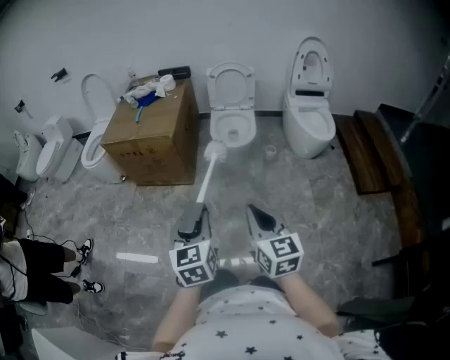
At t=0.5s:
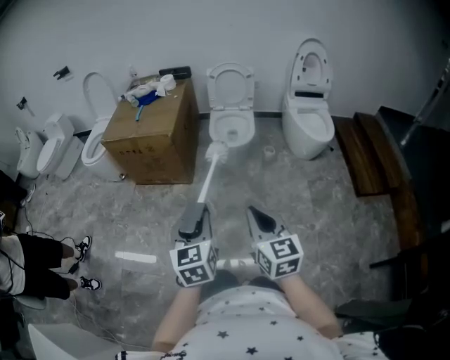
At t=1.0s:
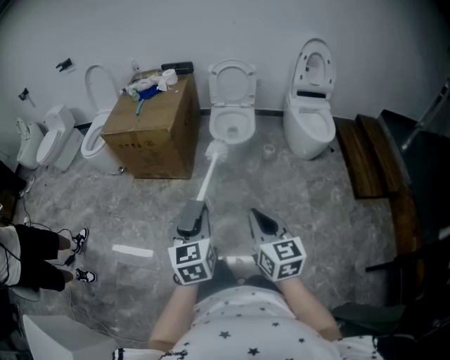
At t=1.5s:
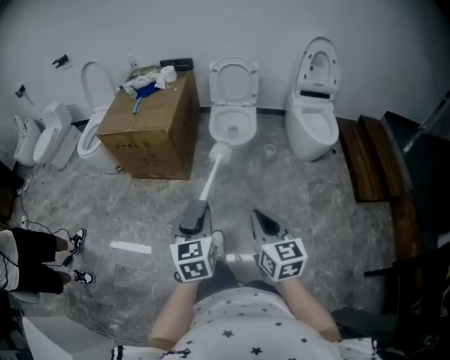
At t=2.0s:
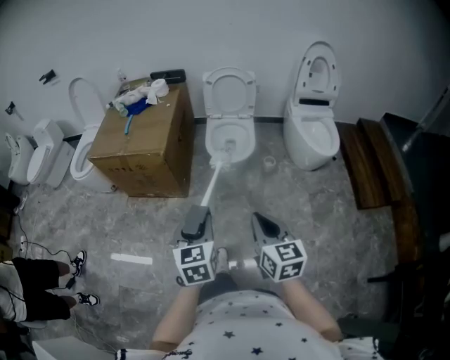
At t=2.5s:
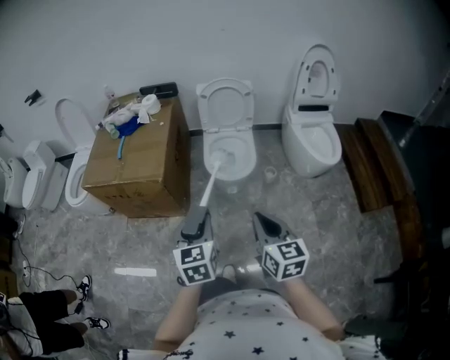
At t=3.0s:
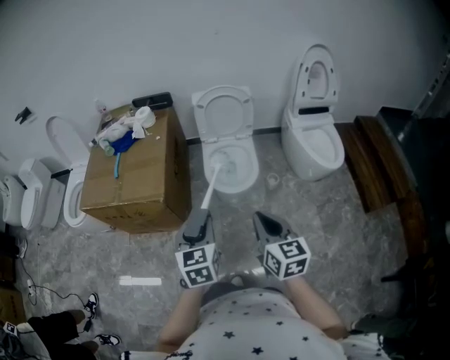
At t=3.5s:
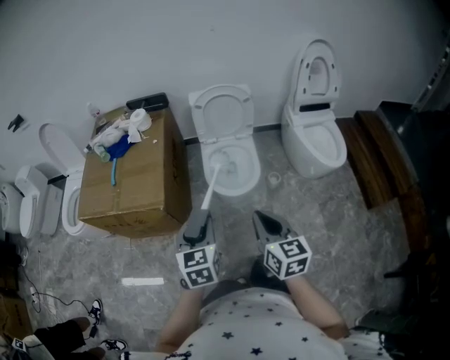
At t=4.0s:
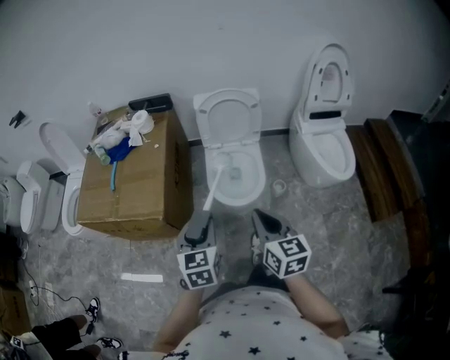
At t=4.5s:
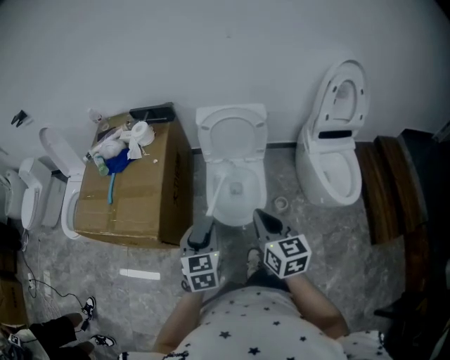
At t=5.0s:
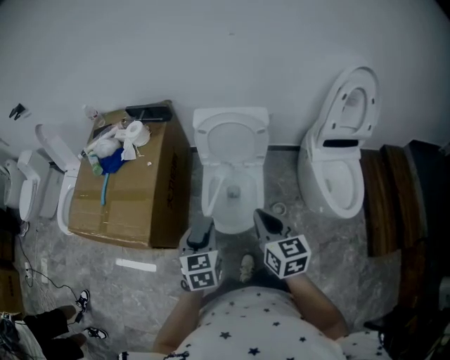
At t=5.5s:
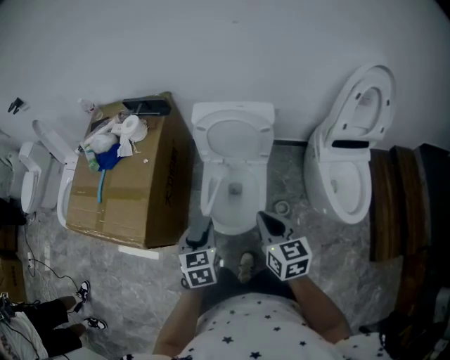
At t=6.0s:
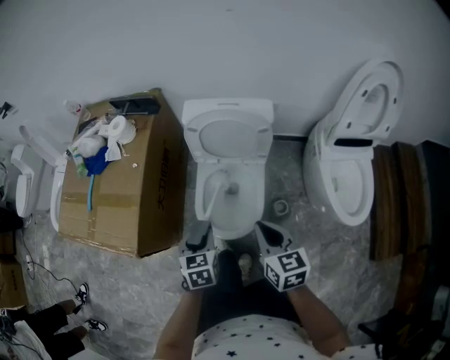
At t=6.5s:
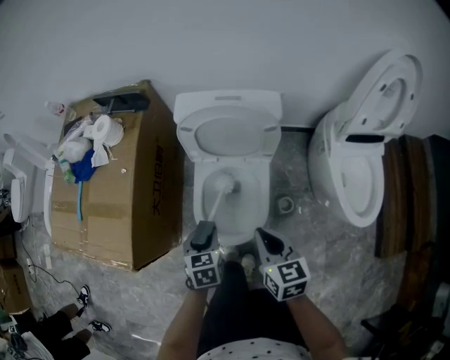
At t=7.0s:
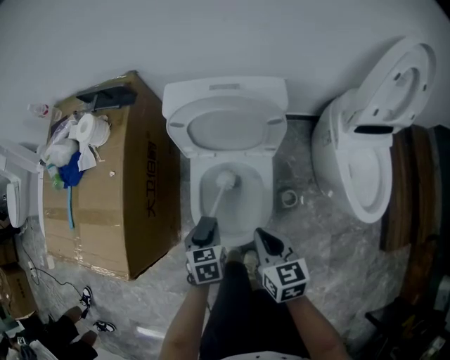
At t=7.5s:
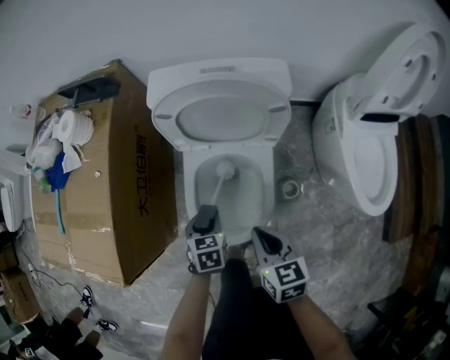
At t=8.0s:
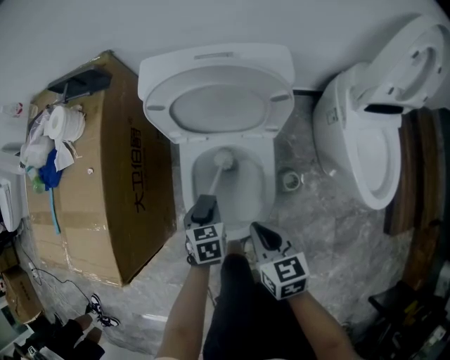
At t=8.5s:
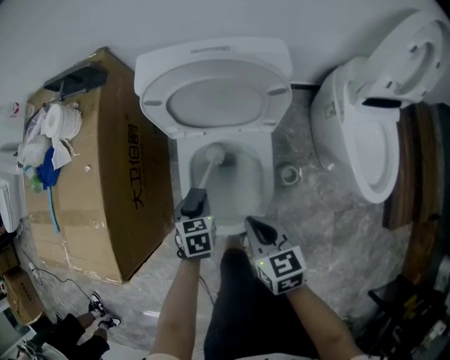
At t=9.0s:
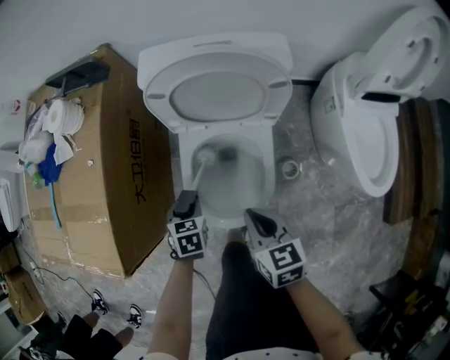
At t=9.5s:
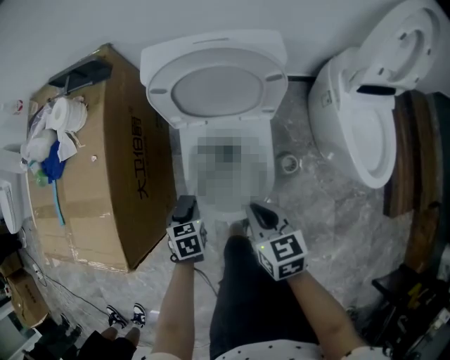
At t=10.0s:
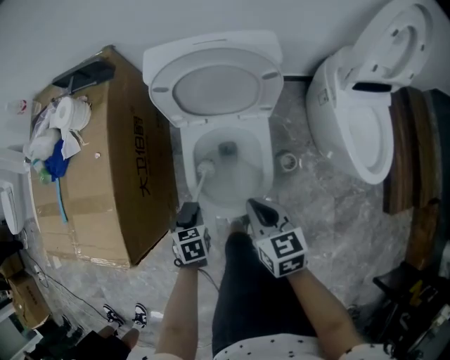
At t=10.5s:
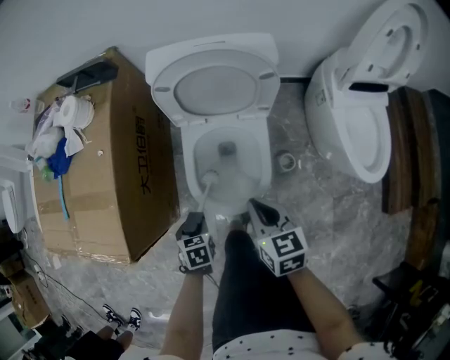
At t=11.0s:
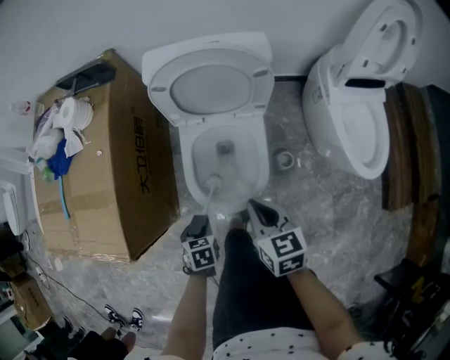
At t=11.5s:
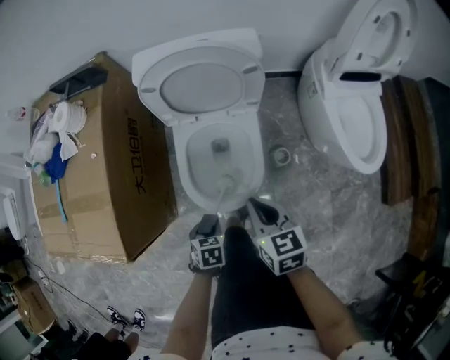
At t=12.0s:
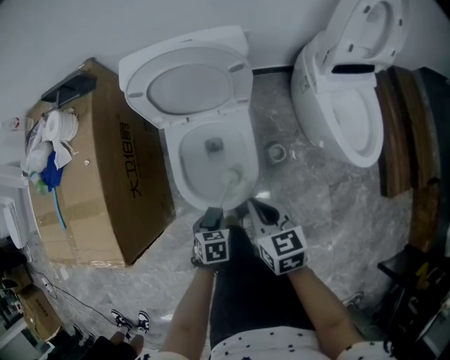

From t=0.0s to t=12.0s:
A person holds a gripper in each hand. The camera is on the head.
From t=0.0s to t=2.0s: The left gripper moves forward, some 15 cm. Meanwhile the right gripper heads forward and to the right, covering some 15 cm.
From t=2.0s to t=4.0s: Both grippers travel together forward, some 35 cm.
From t=4.0s to t=6.0s: The right gripper travels forward, to the right and downward by approximately 30 cm. The left gripper moves forward, downward and to the right, roughly 30 cm, and rotates some 20 degrees.
From t=6.0s to t=8.0s: The left gripper travels downward and forward by about 25 cm; the right gripper is displaced downward by approximately 20 cm.
From t=8.0s to t=10.0s: The left gripper shifts roughly 10 cm to the left and backward.
From t=10.0s to t=12.0s: The left gripper goes roughly 15 cm to the right and backward. The right gripper shifts by some 5 cm.

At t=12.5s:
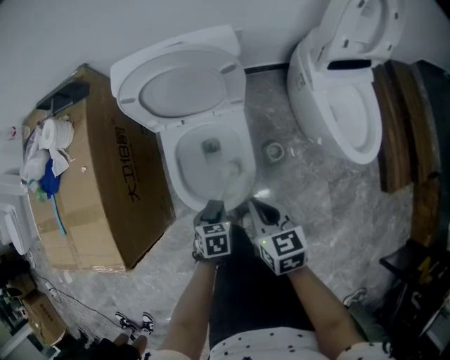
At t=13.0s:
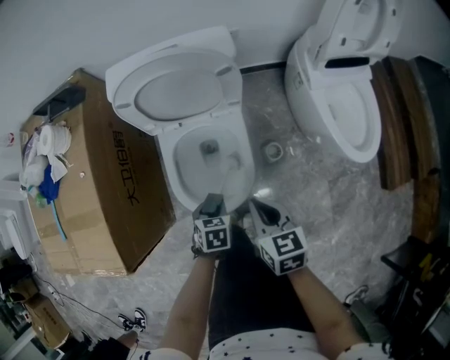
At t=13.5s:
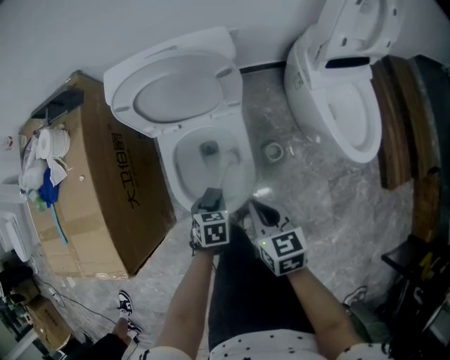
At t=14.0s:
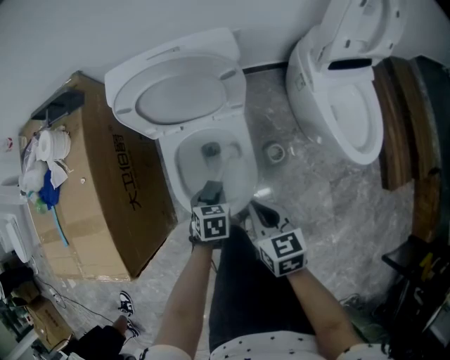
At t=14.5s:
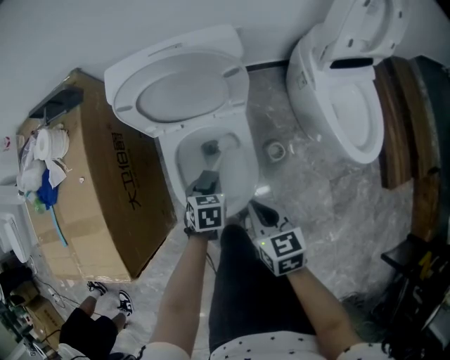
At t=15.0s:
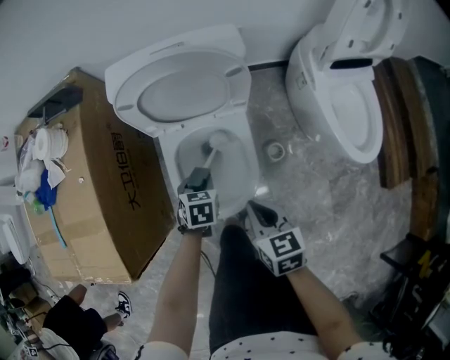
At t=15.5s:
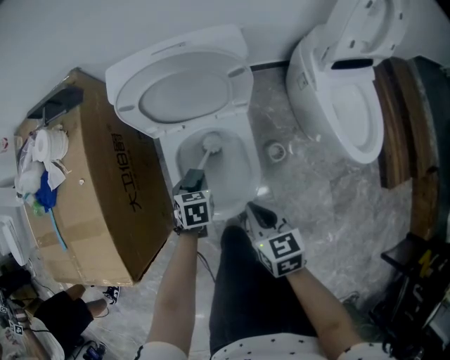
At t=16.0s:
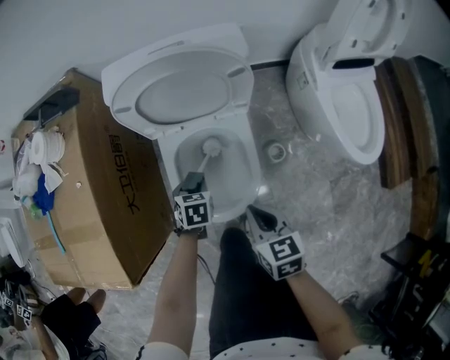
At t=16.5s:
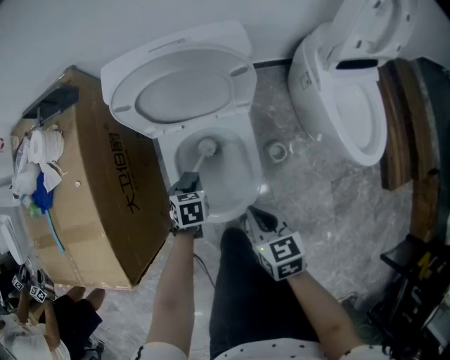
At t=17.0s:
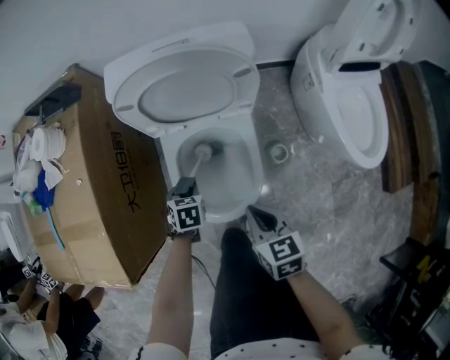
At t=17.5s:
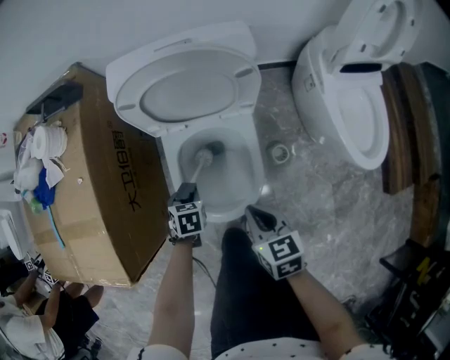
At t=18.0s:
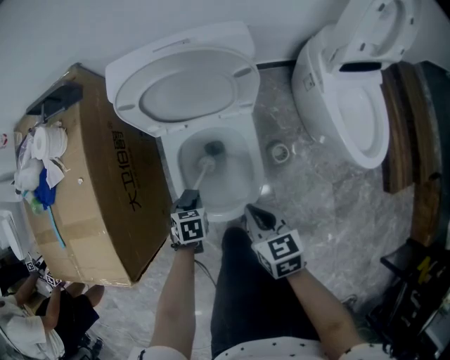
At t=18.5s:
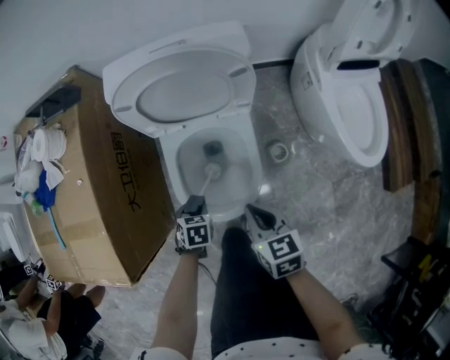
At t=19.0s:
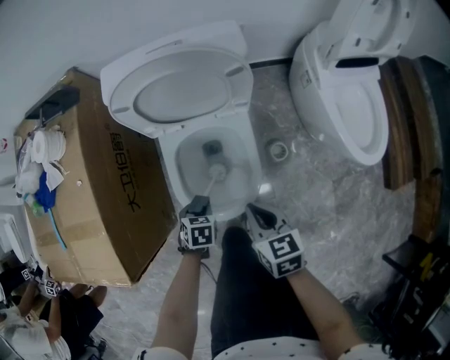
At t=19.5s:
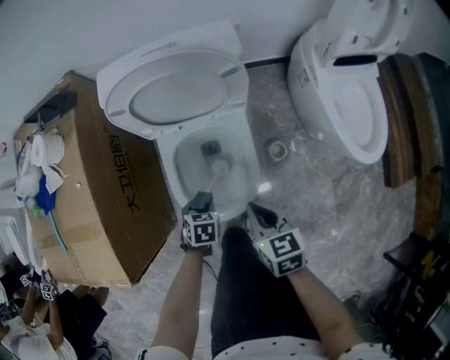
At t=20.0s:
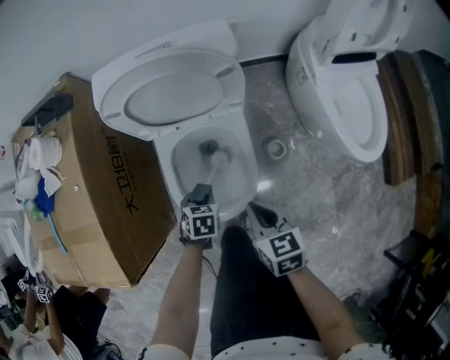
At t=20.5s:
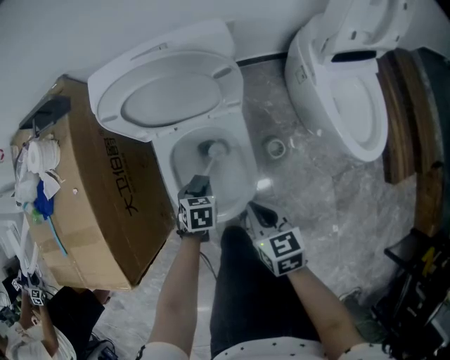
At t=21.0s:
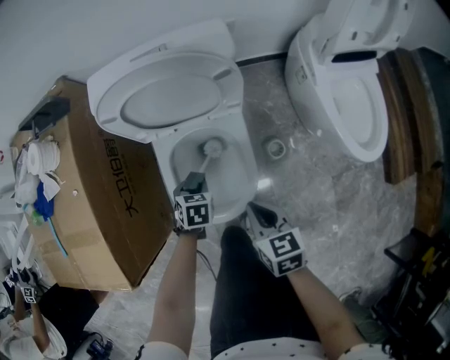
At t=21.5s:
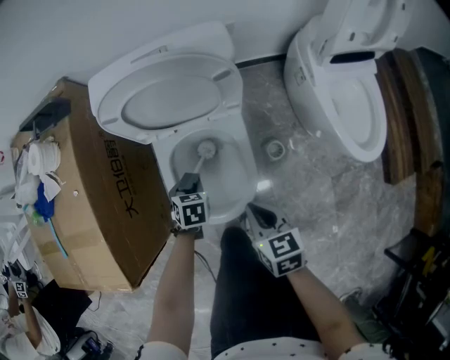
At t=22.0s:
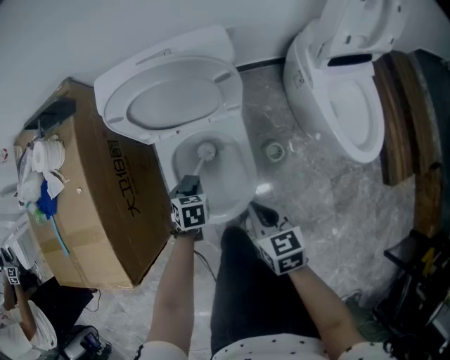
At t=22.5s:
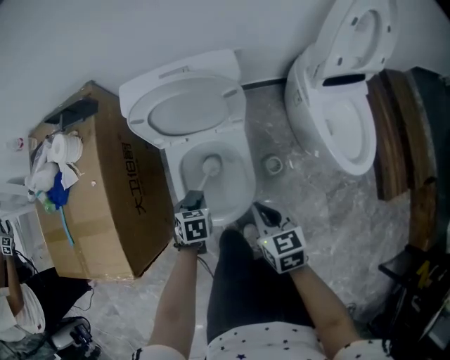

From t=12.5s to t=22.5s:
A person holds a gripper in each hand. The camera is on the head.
From t=12.5s to t=14.5s: The left gripper heads forward, covering some 10 cm.
From t=14.5s to t=16.5s: The left gripper goes roughly 5 cm to the left.
From t=16.5s to t=18.5s: The left gripper ends up some 10 cm from where it was.
From t=18.5s to t=20.5s: The left gripper changes place by about 10 cm.
From t=20.5s to t=22.5s: The grippers both shift upward by about 10 cm.

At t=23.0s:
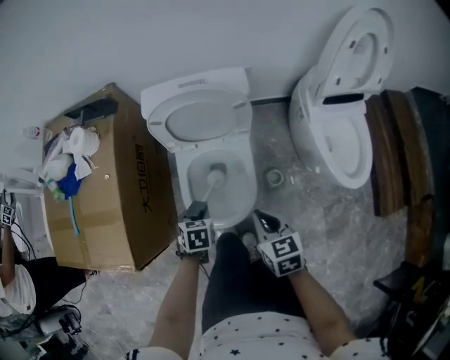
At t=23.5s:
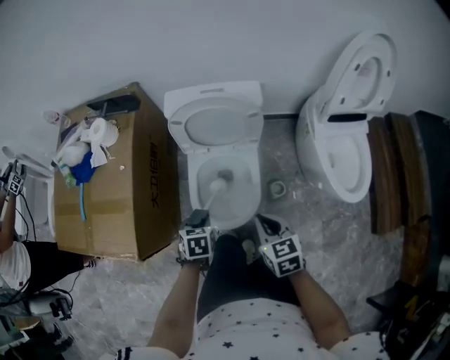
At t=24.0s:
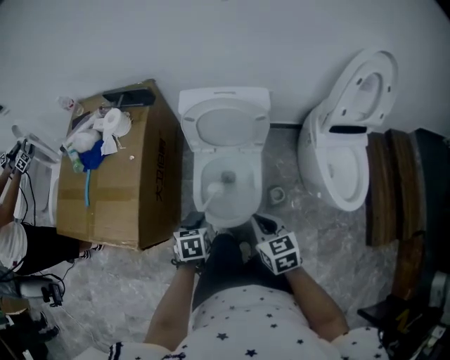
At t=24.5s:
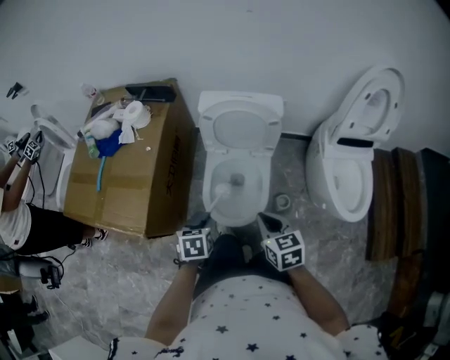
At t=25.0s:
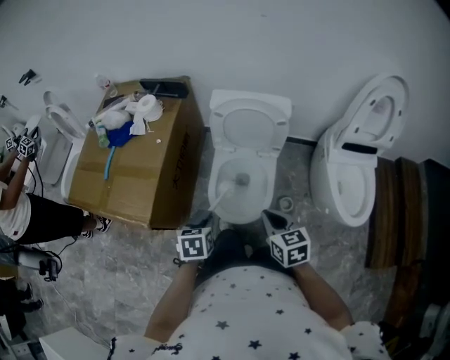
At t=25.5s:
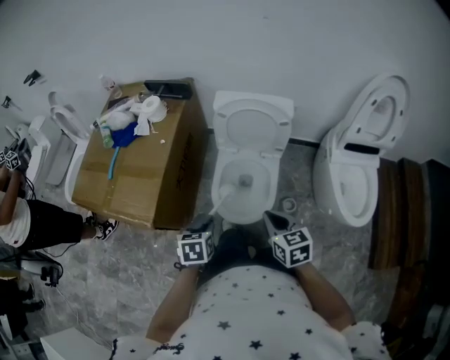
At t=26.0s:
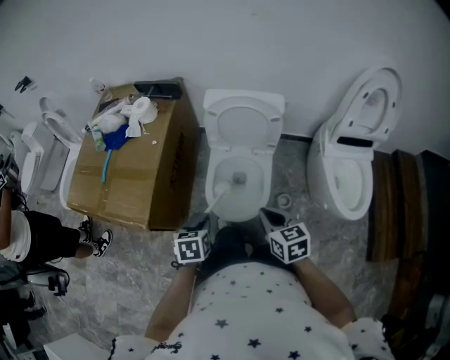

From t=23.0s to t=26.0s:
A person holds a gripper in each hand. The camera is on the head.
From t=23.0s to t=24.5s: The left gripper travels upward, backward and to the left by some 15 cm. Meanwhile the right gripper is displaced upward by roughly 5 cm.
From t=24.5s to t=26.0s: The grippers make only small movements.

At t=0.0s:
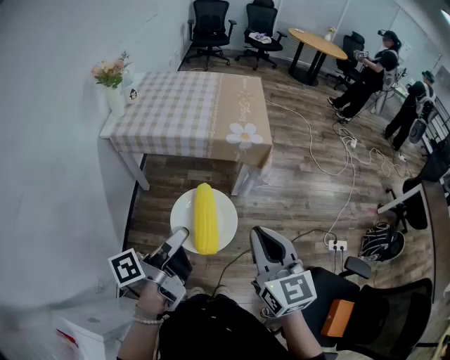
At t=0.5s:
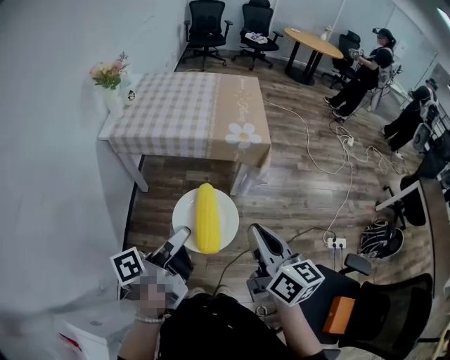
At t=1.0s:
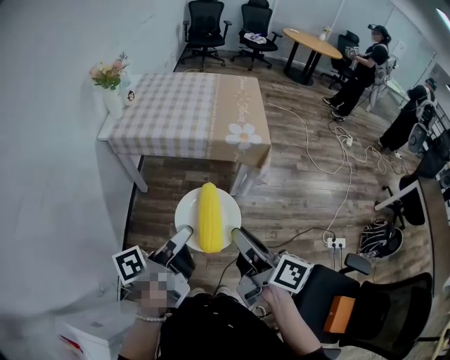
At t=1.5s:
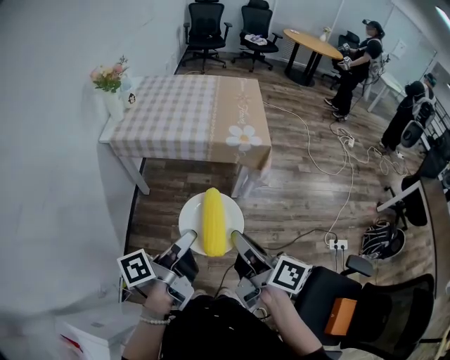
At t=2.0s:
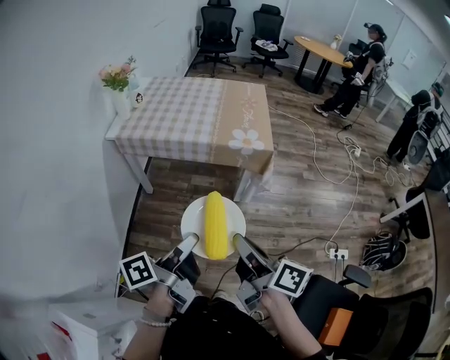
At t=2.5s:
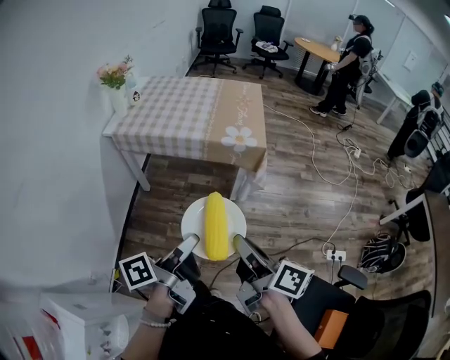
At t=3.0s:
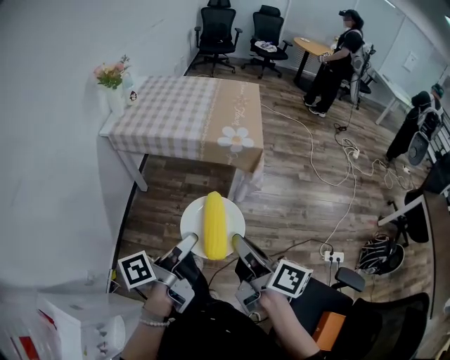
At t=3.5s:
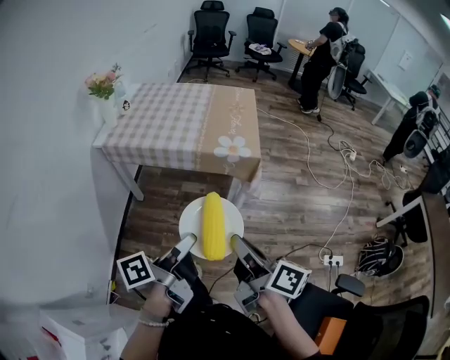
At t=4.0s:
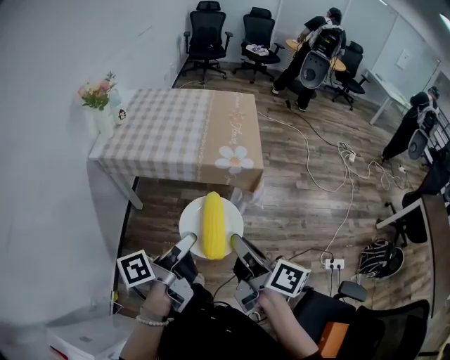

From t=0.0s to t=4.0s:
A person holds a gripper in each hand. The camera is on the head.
From t=0.0s to t=2.0s: The right gripper rolls clockwise, seen from behind, by about 60 degrees.
From t=2.0s to t=4.0s: The two grippers go some 10 cm forward.
